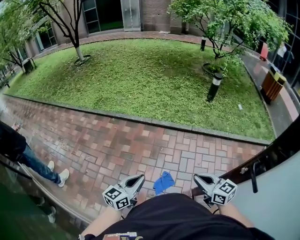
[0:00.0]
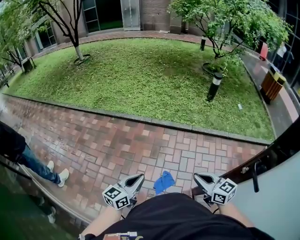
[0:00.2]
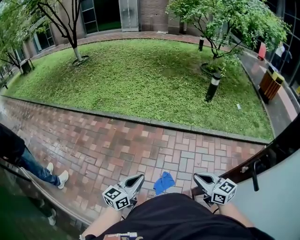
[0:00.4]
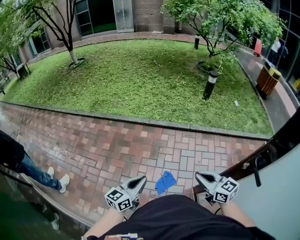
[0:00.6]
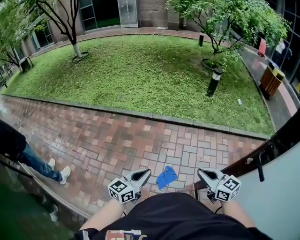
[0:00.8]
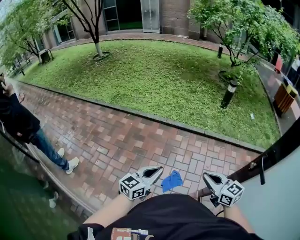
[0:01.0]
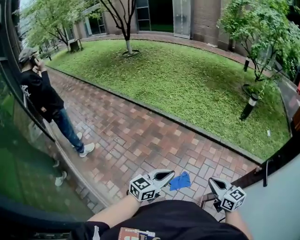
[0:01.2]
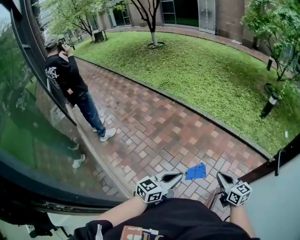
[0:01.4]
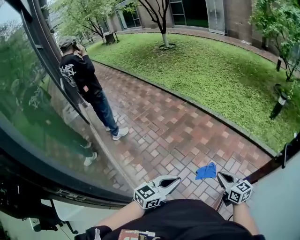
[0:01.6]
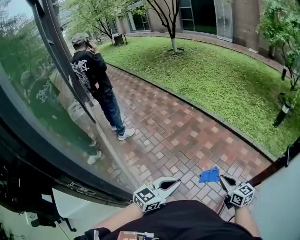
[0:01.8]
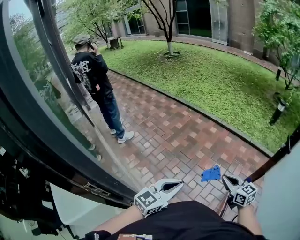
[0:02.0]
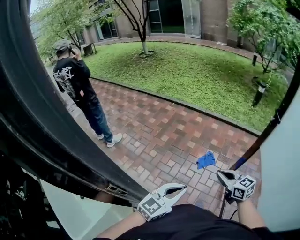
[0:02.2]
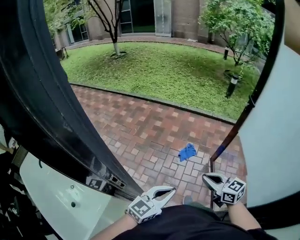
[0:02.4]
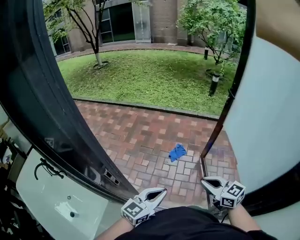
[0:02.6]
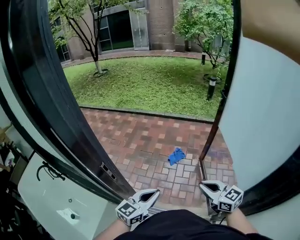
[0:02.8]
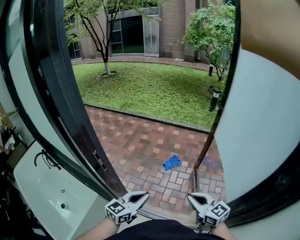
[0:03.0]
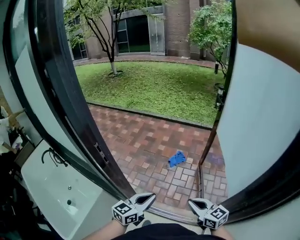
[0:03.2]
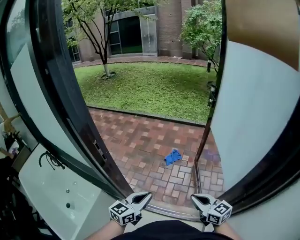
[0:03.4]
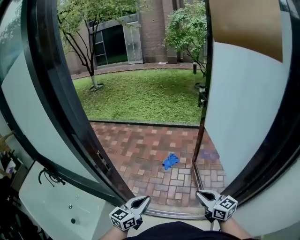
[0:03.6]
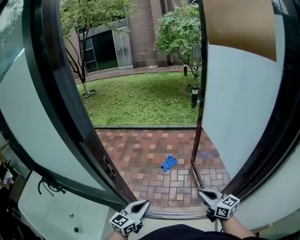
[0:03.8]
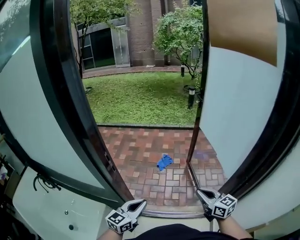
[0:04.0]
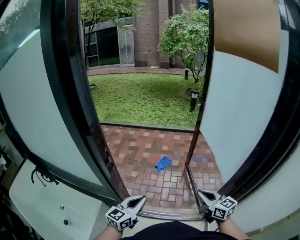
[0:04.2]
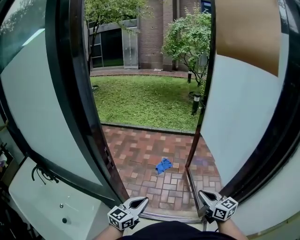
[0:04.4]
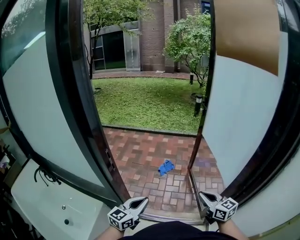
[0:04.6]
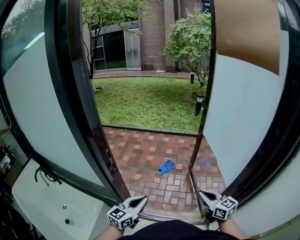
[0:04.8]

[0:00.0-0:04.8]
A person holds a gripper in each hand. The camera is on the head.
0:00.0 to 0:01.6: The right gripper goes about 20 cm backward and to the left, while the left gripper shifts some 30 cm backward.
0:01.6 to 0:03.2: Both grippers are carried backward, some 50 cm.
0:03.2 to 0:04.8: The left gripper shifts some 10 cm to the left, while the right gripper shifts by some 5 cm.

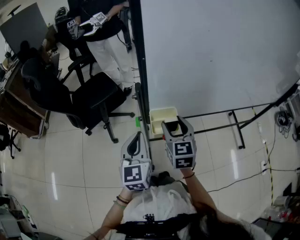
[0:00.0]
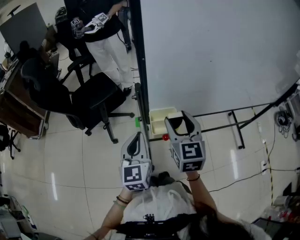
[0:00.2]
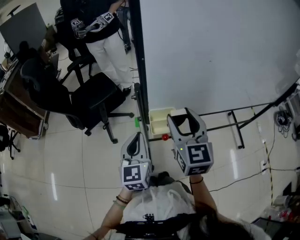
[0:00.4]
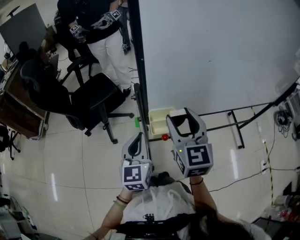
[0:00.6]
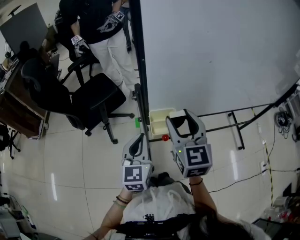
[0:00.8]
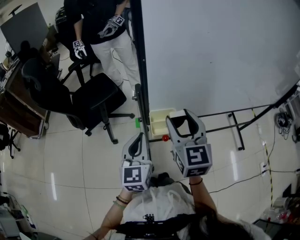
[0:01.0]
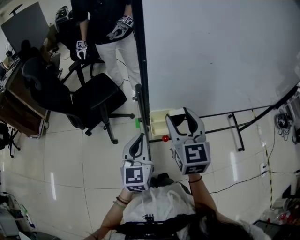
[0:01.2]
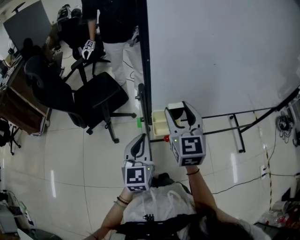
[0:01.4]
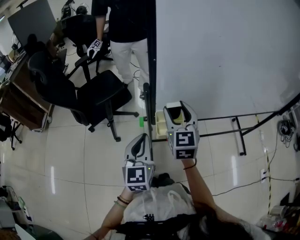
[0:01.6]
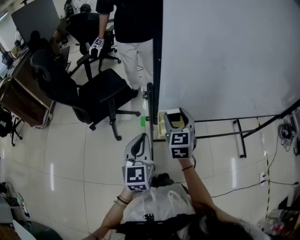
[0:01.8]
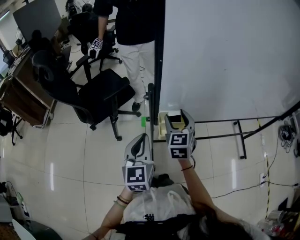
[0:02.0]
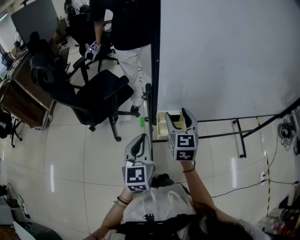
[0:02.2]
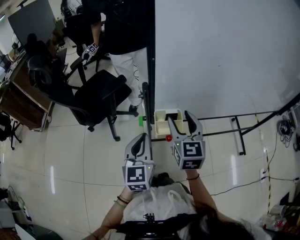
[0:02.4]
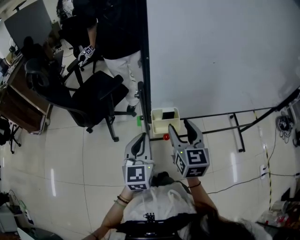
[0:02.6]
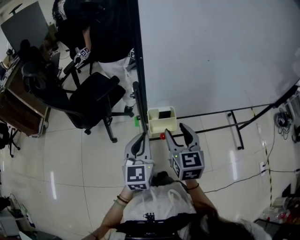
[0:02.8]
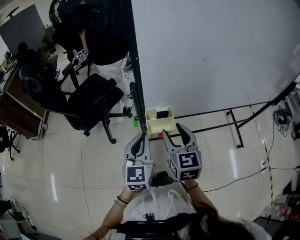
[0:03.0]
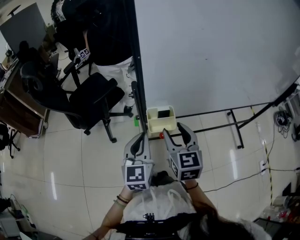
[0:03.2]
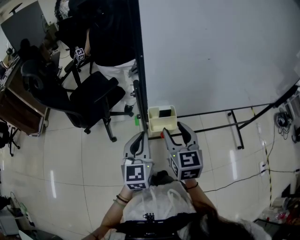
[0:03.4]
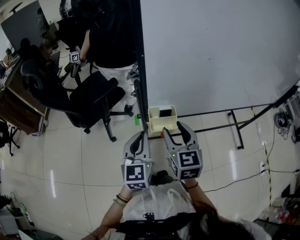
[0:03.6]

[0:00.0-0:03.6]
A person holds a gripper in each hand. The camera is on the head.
0:00.0 to 0:01.8: The right gripper travels upward and back again, approximately 10 cm each way.
0:01.8 to 0:03.6: The right gripper moves backward, some 10 cm.

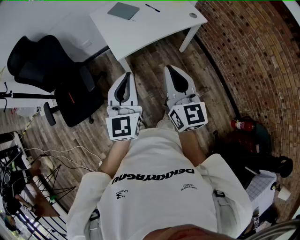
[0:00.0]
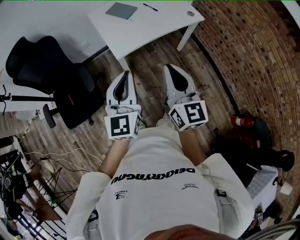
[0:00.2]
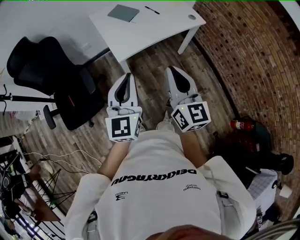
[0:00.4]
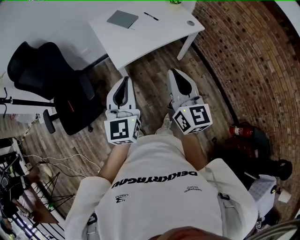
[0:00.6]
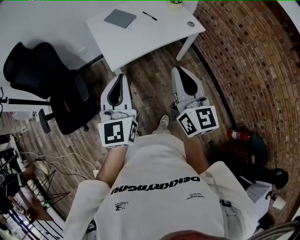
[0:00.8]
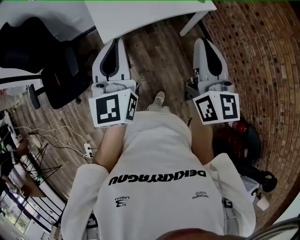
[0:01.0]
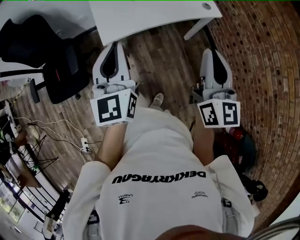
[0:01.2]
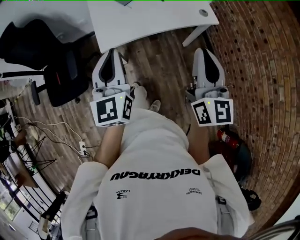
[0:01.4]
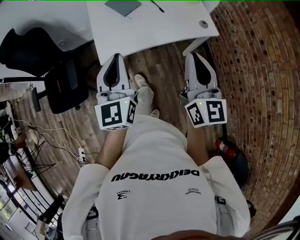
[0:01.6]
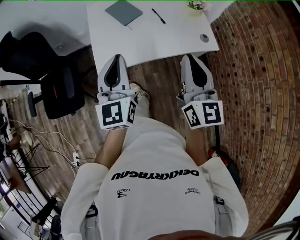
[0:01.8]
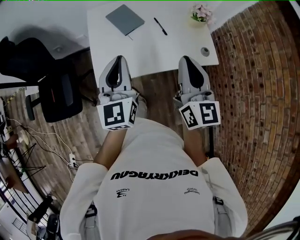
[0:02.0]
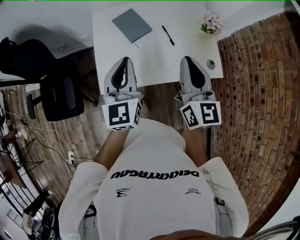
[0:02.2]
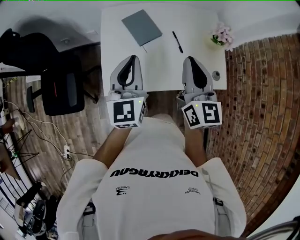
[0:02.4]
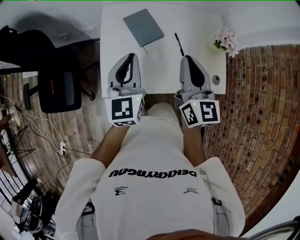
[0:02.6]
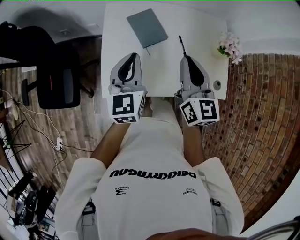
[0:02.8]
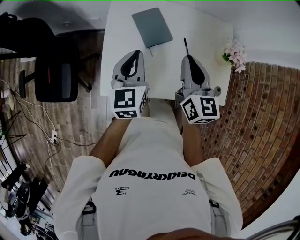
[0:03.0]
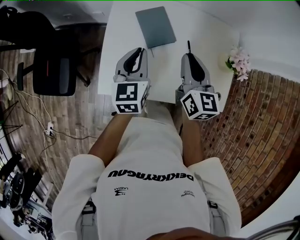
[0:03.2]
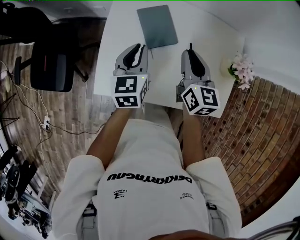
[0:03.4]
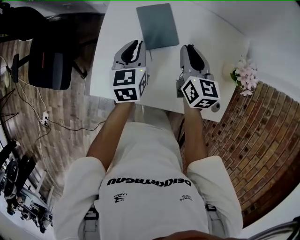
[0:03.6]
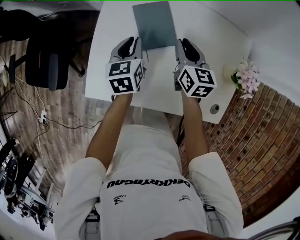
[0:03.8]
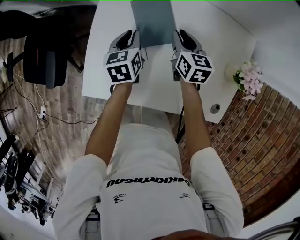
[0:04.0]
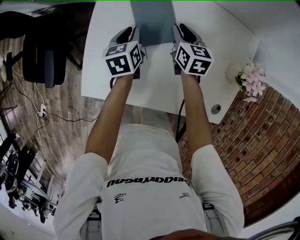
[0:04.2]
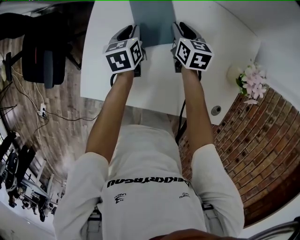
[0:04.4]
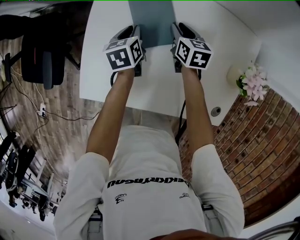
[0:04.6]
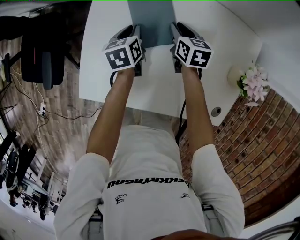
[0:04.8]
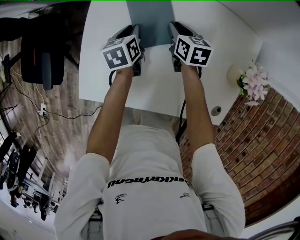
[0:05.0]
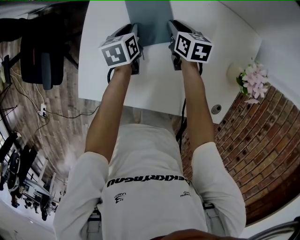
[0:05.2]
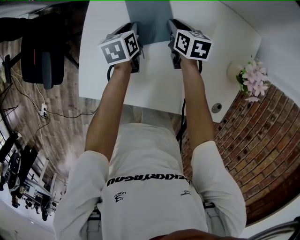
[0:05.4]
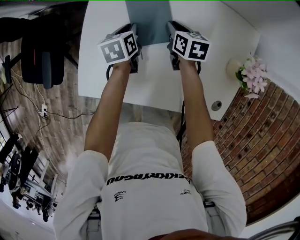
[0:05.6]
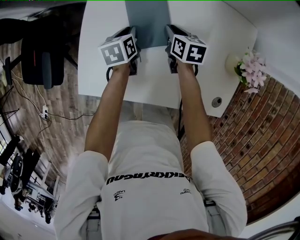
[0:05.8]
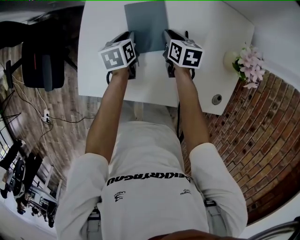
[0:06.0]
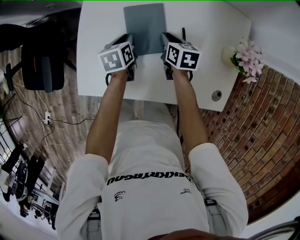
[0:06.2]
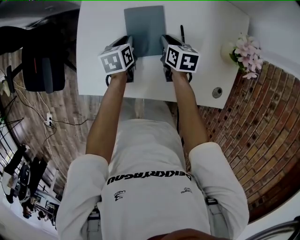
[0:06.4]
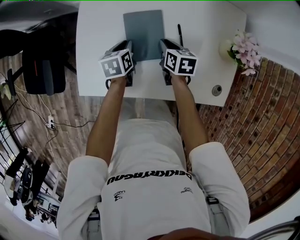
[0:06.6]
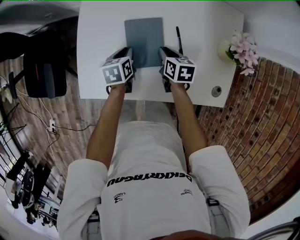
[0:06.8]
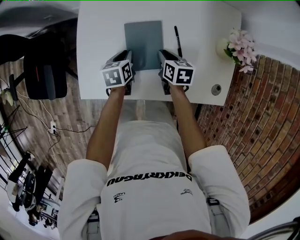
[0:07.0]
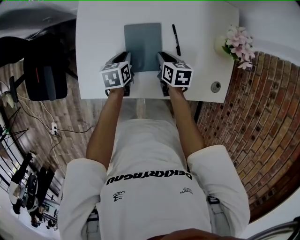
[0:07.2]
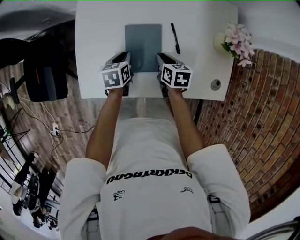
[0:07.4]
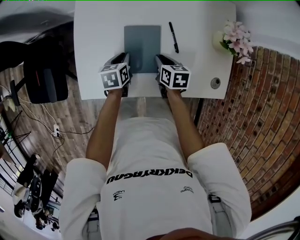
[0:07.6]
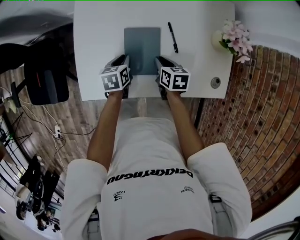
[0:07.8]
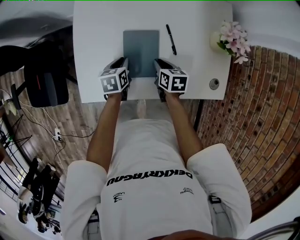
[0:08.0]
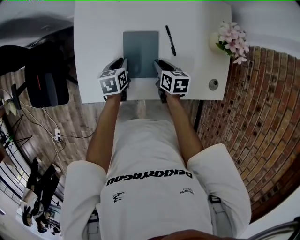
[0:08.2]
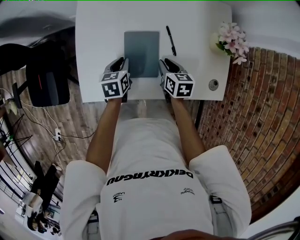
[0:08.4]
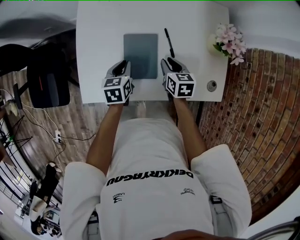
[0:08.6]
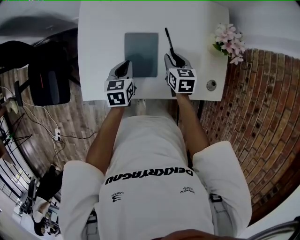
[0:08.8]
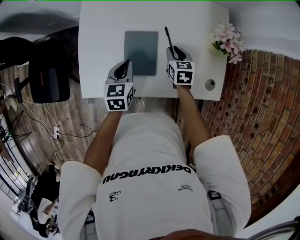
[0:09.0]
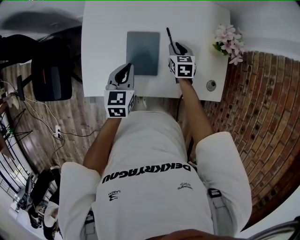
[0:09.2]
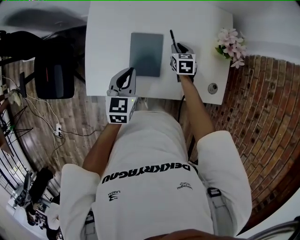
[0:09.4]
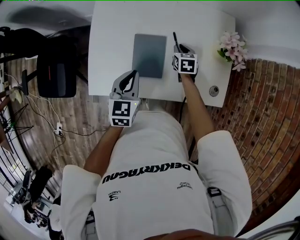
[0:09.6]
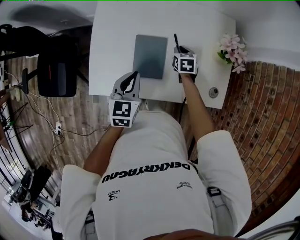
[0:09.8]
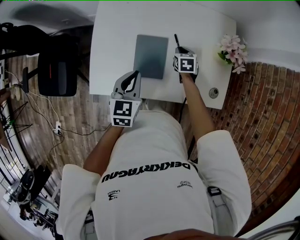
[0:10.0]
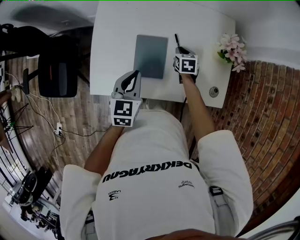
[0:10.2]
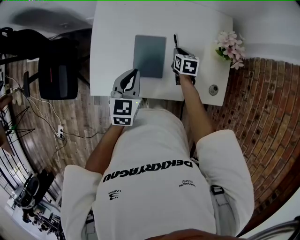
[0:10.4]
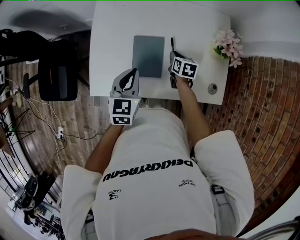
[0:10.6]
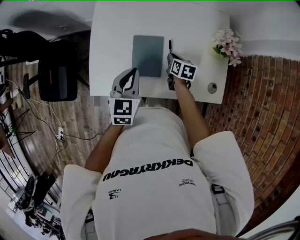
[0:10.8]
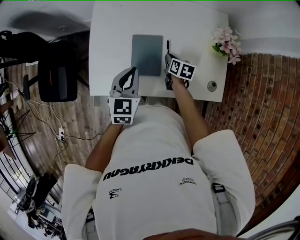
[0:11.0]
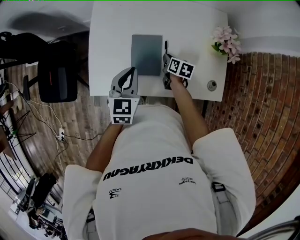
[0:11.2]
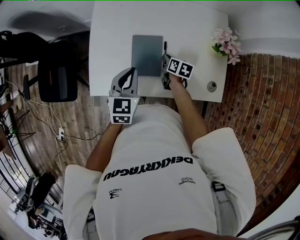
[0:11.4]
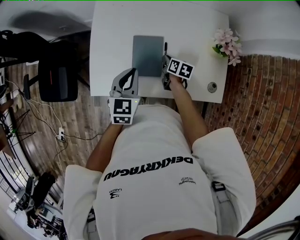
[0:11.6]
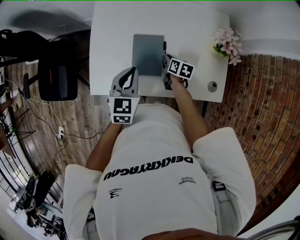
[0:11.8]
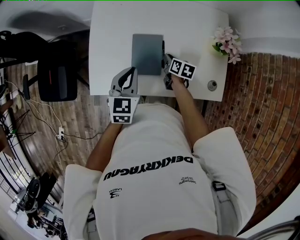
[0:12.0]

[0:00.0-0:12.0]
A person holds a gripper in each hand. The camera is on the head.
0:00.0 to 0:01.6: The two grippers go about 25 cm forward and to the right.
0:01.6 to 0:03.0: The grippers both shift forward by approximately 40 cm. The right gripper turns by some 20 degrees. Meanwhile the left gripper rotates approximately 20 degrees.
0:03.0 to 0:04.4: The two grippers go roughly 35 cm downward and forward. The left gripper turns by some 40 degrees, while the right gripper swivels roughly 30 degrees, and opens its fingers.
0:04.4 to 0:06.0: The grippers both shift backward by about 5 cm.
0:06.0 to 0:07.6: The two grippers go some 10 cm backward.
0:07.6 to 0:09.0: The left gripper travels upward by some 10 cm, and turns by some 20 degrees; the right gripper goes about 10 cm to the right and forward, and changes its angle by approximately 20 degrees.
0:09.0 to 0:10.4: The left gripper travels upward by some 10 cm.
0:10.4 to 0:12.0: The right gripper moves some 5 cm, and turns by approximately 20 degrees.

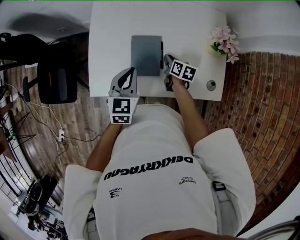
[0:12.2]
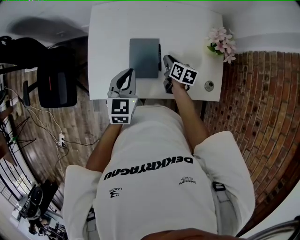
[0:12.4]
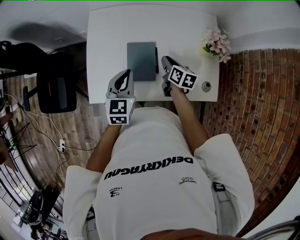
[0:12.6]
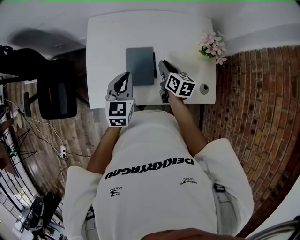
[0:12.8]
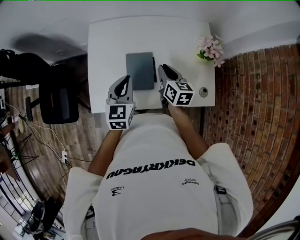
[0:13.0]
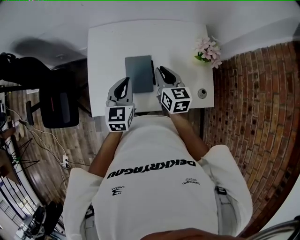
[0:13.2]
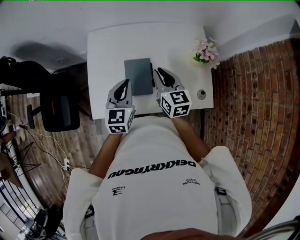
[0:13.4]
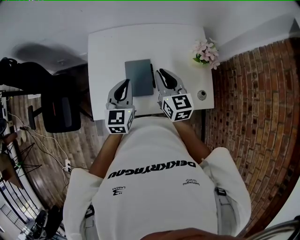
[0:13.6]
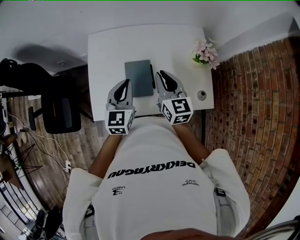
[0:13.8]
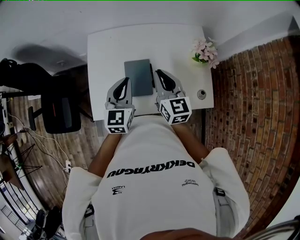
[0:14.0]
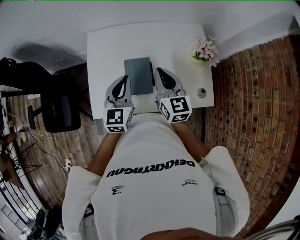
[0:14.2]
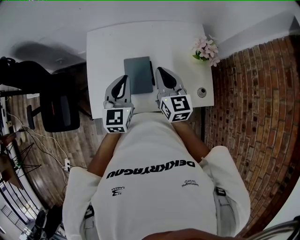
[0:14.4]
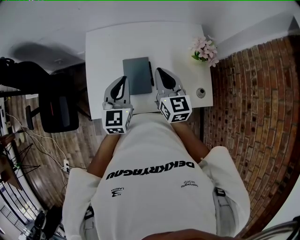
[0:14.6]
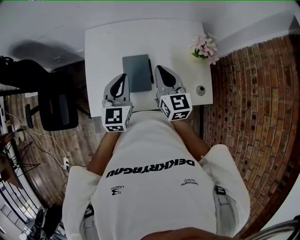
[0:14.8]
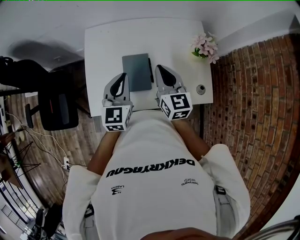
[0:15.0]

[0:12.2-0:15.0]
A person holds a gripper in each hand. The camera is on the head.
0:12.2 to 0:13.6: The left gripper moves upward, about 10 cm. The right gripper is displaced upward by about 25 cm, and turns by some 40 degrees.
0:13.6 to 0:15.0: The grippers make only small movements.
